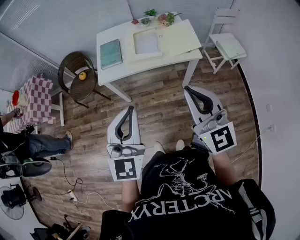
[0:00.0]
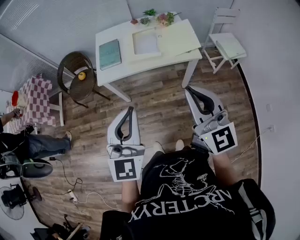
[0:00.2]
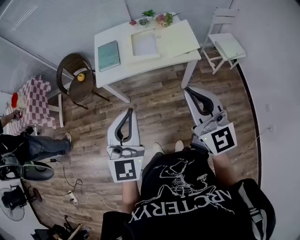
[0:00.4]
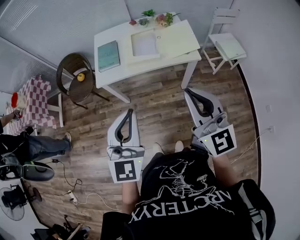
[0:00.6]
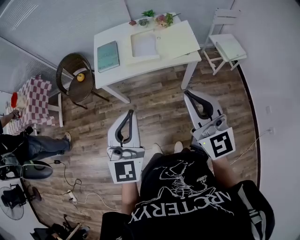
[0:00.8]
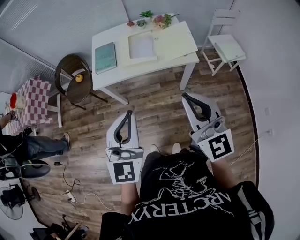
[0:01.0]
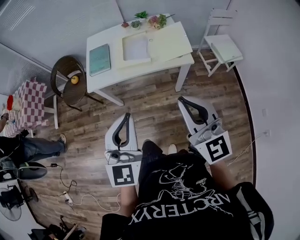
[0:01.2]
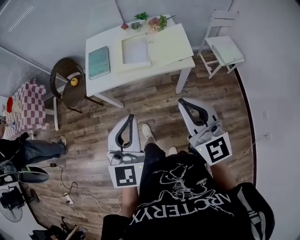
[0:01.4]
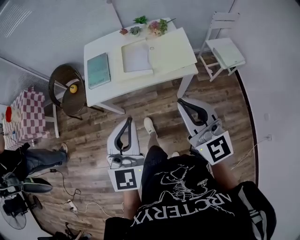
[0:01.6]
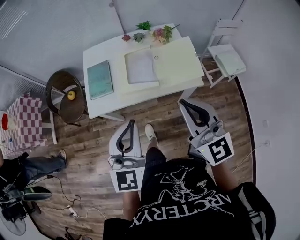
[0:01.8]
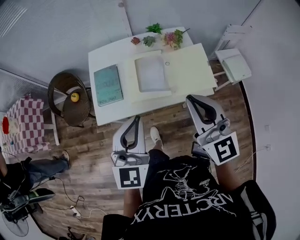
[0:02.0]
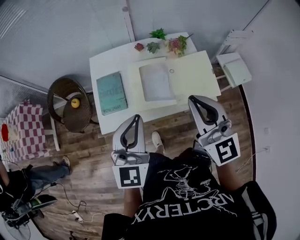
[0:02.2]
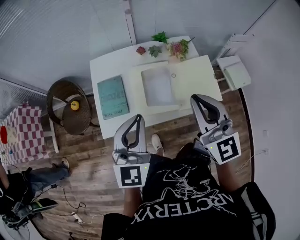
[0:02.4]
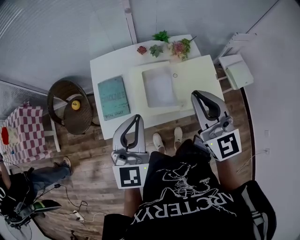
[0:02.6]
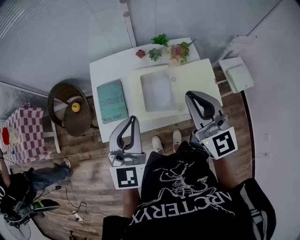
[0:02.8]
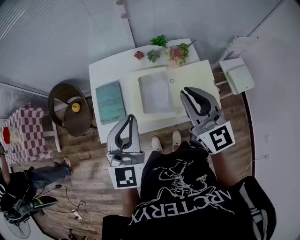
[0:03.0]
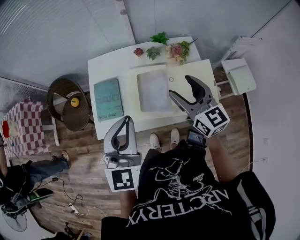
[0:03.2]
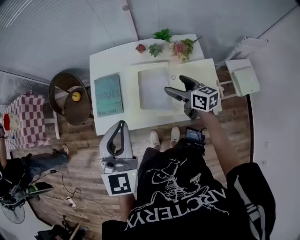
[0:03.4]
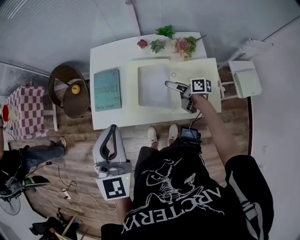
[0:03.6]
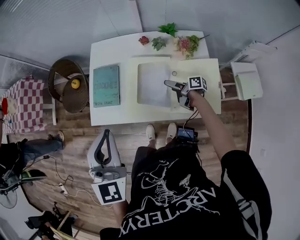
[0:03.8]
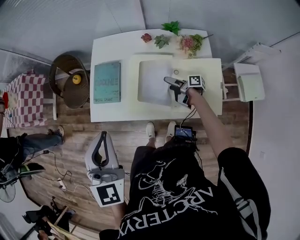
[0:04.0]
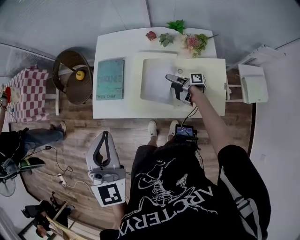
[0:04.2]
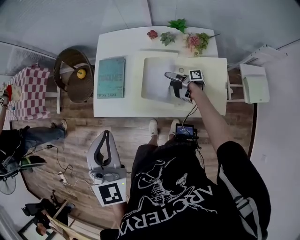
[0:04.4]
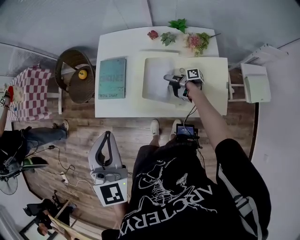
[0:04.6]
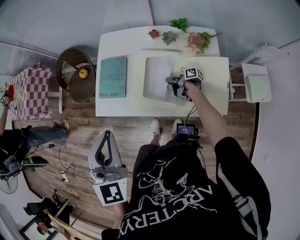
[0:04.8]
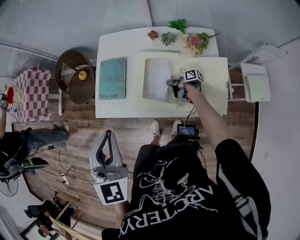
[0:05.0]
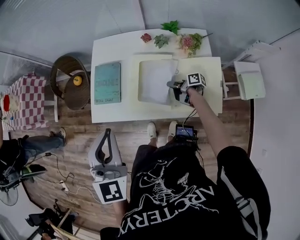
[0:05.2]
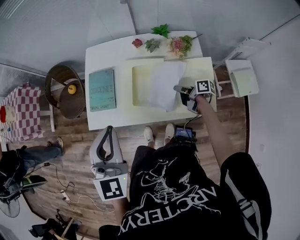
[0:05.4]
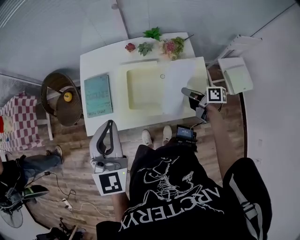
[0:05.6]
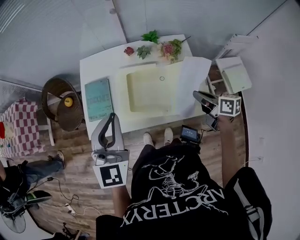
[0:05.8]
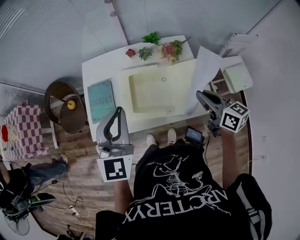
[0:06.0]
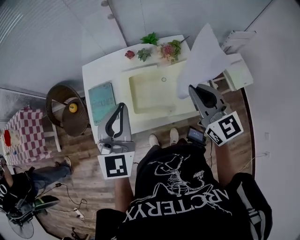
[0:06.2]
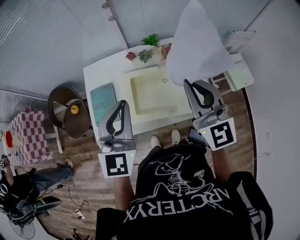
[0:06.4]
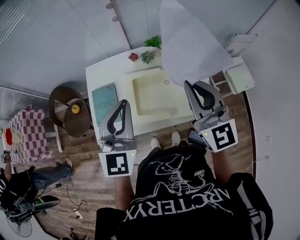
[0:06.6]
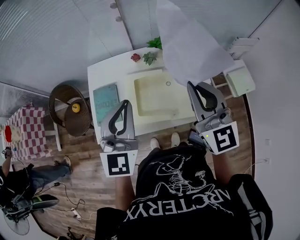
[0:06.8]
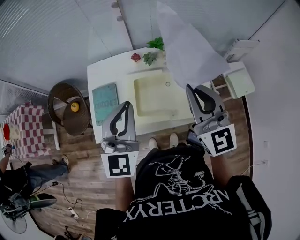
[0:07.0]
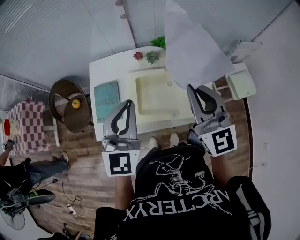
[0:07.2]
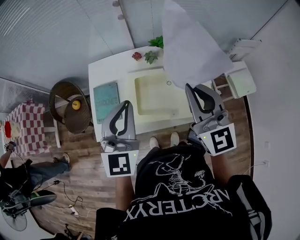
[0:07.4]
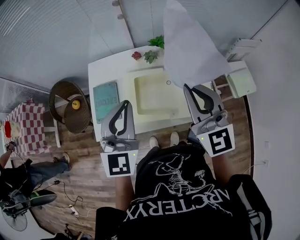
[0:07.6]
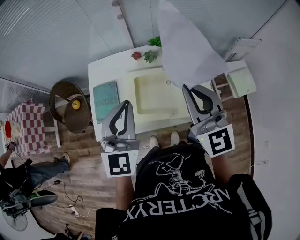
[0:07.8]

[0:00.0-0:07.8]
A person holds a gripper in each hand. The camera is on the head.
0.0 to 1.6 s: The two grippers go approximately 15 cm forward and to the right.
1.6 to 3.2 s: The grippers both shift forward by some 35 cm. The right gripper opens.
3.2 to 4.6 s: The left gripper ends up roughly 5 cm from where it was, and turns by roughly 20 degrees. The right gripper travels downward by about 35 cm, twists about 80 degrees clockwise, seen from behind, and opens, then closes again.
4.6 to 6.2 s: The left gripper ends up approximately 10 cm from where it was, and rotates about 20 degrees. The right gripper travels upward by roughly 40 cm, rolls counterclockwise, seen from behind, by roughly 90 degrees, and closes.
6.2 to 7.8 s: The right gripper moves upward, about 5 cm.

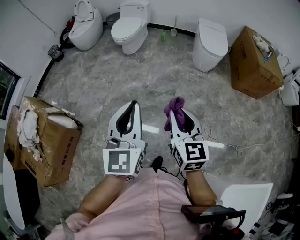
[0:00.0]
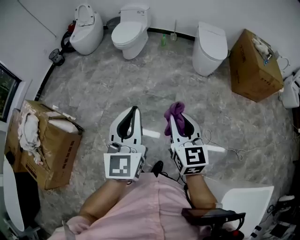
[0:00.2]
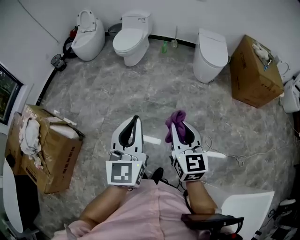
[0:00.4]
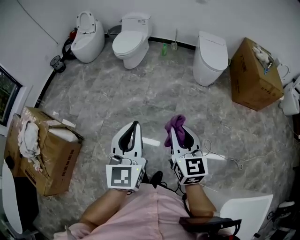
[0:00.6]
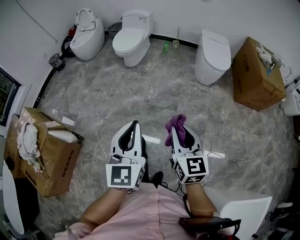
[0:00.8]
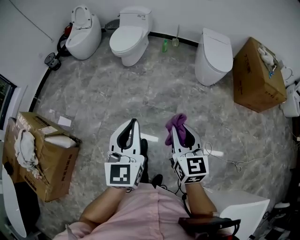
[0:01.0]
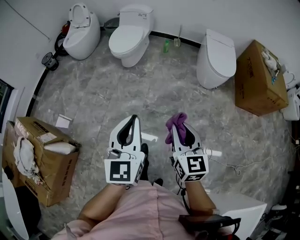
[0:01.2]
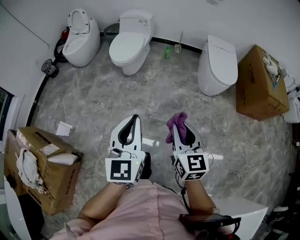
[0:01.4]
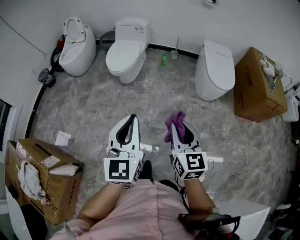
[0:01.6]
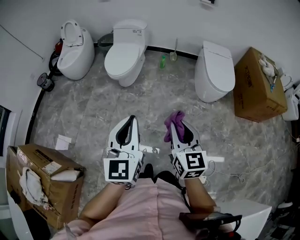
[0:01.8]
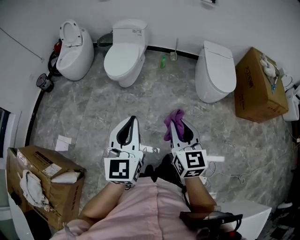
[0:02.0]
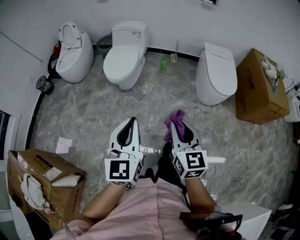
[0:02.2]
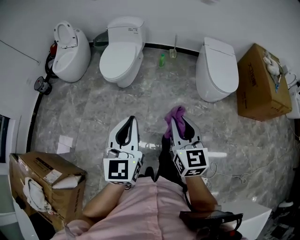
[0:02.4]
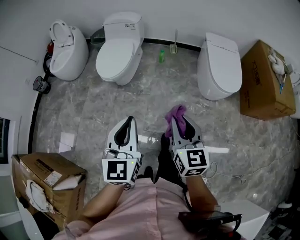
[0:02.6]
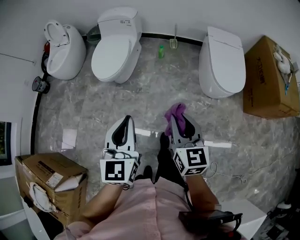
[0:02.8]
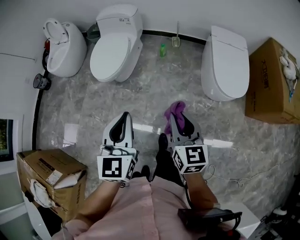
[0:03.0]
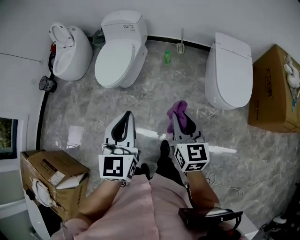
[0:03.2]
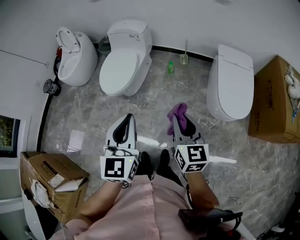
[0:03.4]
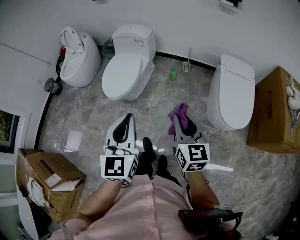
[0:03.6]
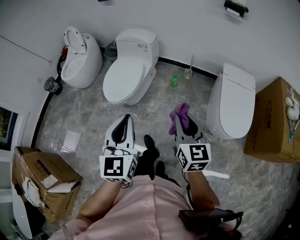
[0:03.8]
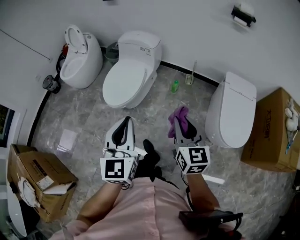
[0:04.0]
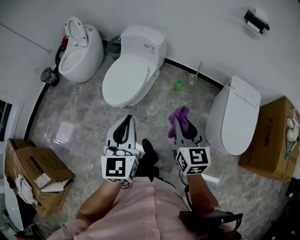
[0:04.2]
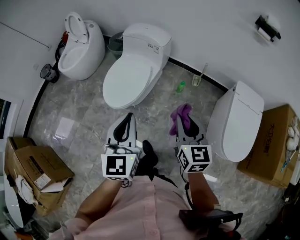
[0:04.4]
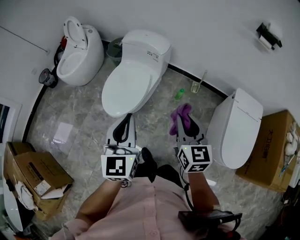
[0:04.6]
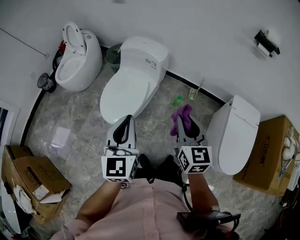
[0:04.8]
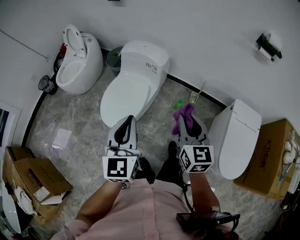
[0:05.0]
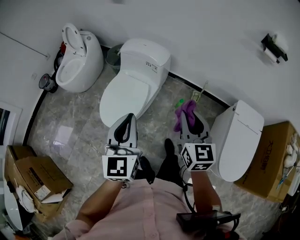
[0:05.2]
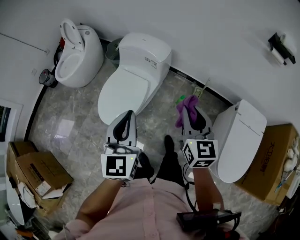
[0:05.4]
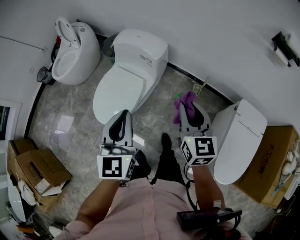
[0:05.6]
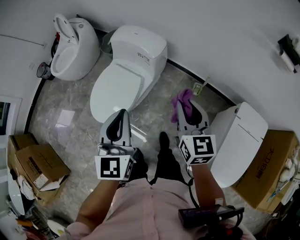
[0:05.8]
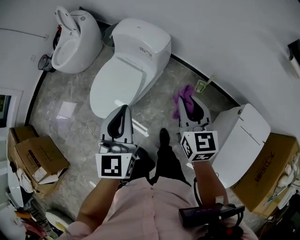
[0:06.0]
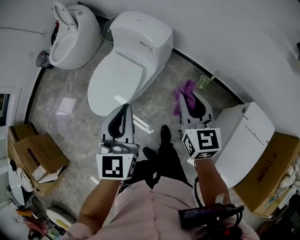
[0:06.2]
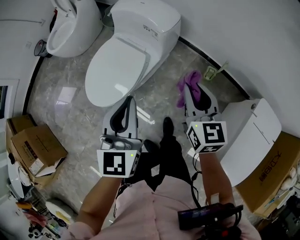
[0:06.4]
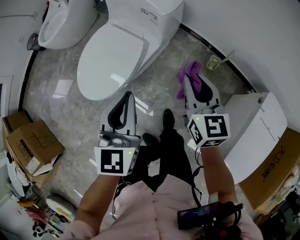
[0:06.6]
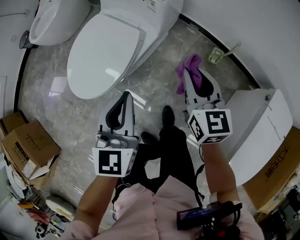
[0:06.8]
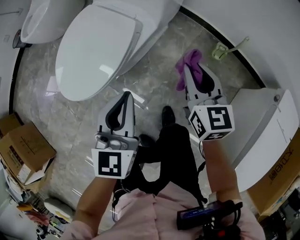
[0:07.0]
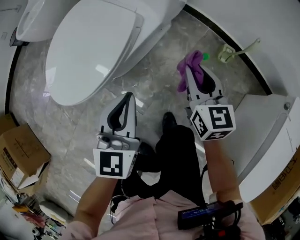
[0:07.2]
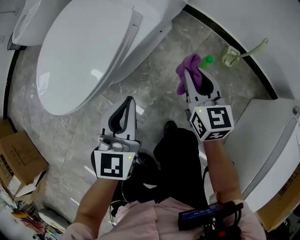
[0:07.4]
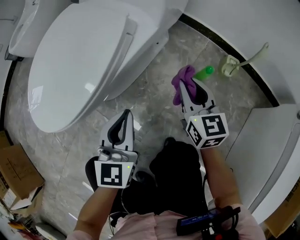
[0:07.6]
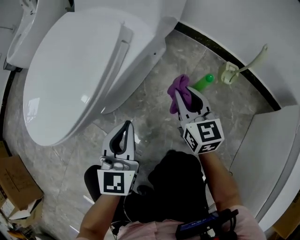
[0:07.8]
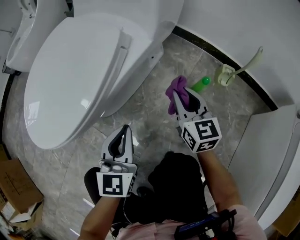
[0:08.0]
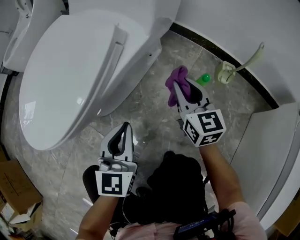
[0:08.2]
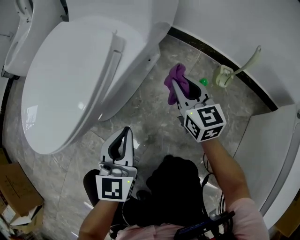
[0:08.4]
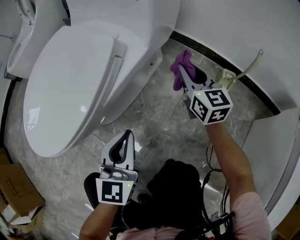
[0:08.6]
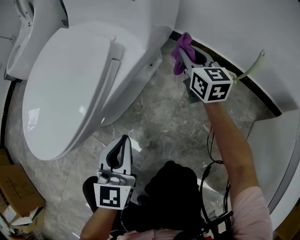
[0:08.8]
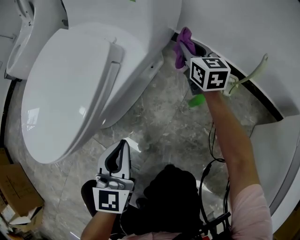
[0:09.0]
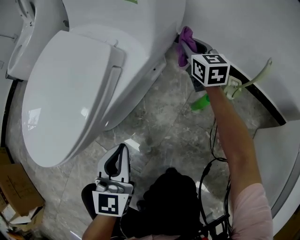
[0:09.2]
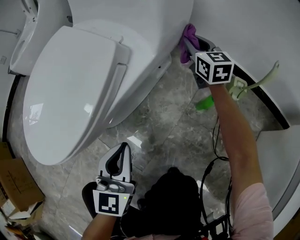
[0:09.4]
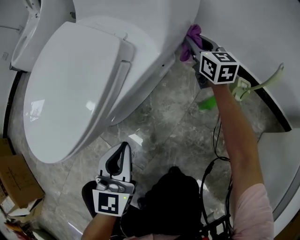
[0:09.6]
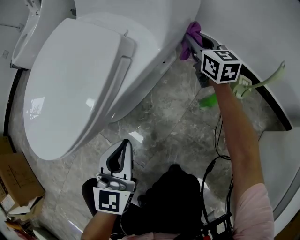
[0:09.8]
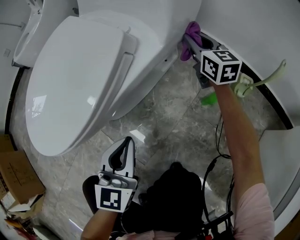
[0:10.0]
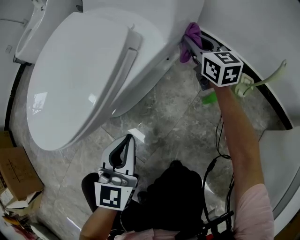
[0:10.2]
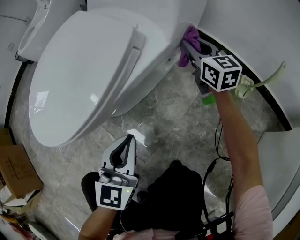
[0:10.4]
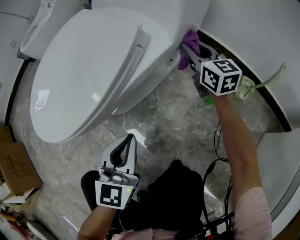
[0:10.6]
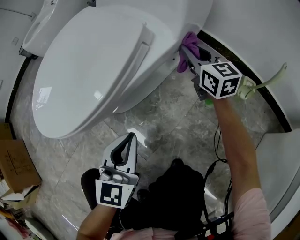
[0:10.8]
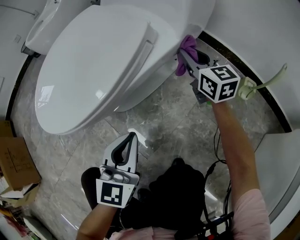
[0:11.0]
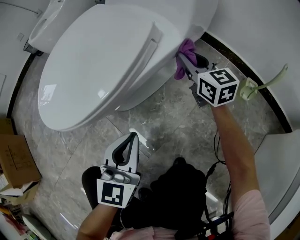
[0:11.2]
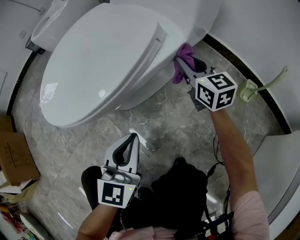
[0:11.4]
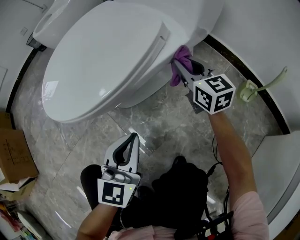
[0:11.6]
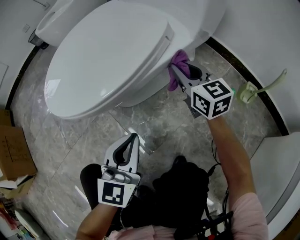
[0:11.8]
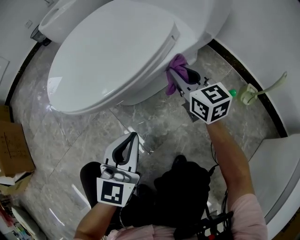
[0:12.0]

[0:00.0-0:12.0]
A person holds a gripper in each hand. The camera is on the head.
0.0 to 1.6 s: The grippers both shift forward by roughly 35 cm.
1.6 to 3.0 s: The grippers both shift forward and to the right by approximately 30 cm.
3.0 to 4.4 s: The grippers both shift forward by roughly 30 cm.
4.4 to 6.0 s: Both grippers move forward and to the right, some 30 cm.
6.0 to 7.6 s: Both grippers move downward, about 50 cm.
7.6 to 9.0 s: The right gripper moves forward, some 25 cm.
9.0 to 10.4 s: The right gripper heads to the left, covering roughly 5 cm.
10.4 to 12.0 s: The right gripper heads to the left and backward, covering about 20 cm; the left gripper moves to the left and backward, approximately 10 cm.

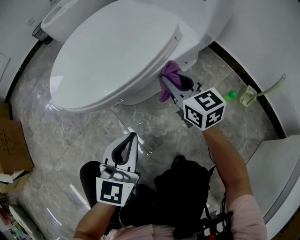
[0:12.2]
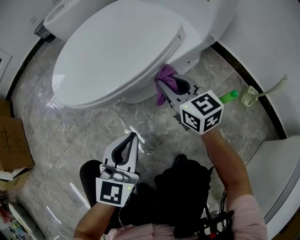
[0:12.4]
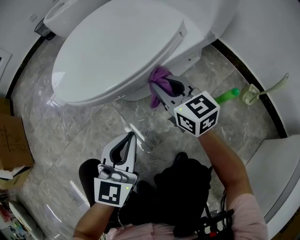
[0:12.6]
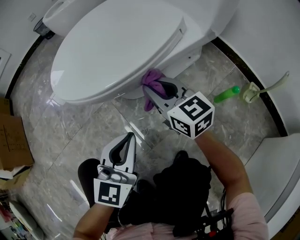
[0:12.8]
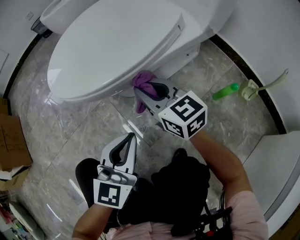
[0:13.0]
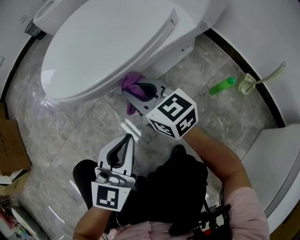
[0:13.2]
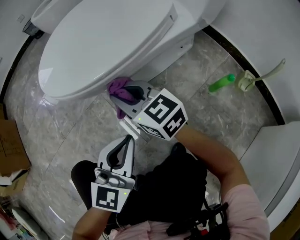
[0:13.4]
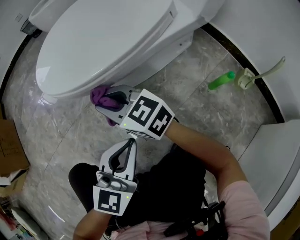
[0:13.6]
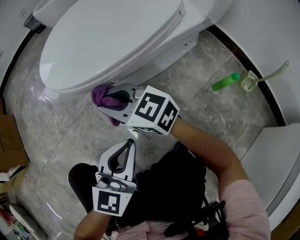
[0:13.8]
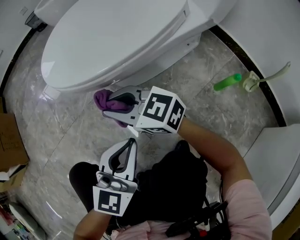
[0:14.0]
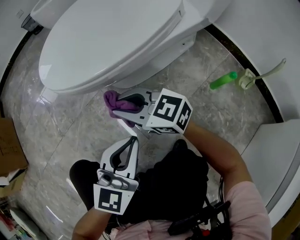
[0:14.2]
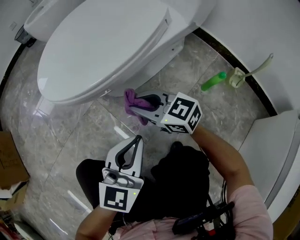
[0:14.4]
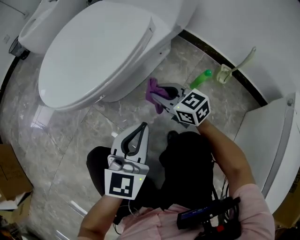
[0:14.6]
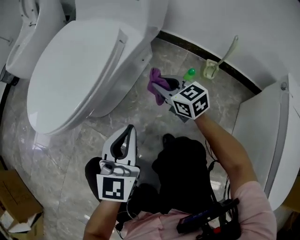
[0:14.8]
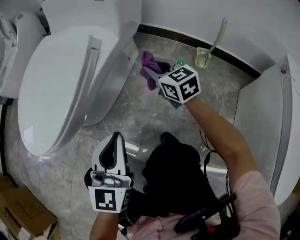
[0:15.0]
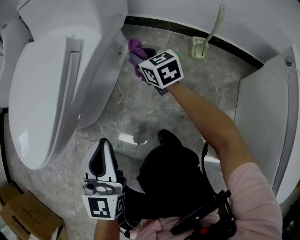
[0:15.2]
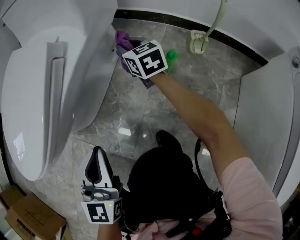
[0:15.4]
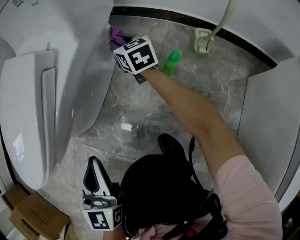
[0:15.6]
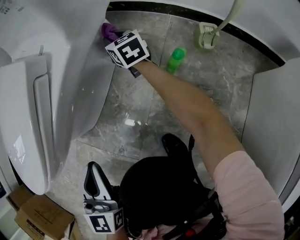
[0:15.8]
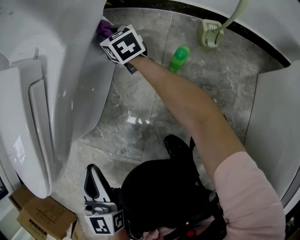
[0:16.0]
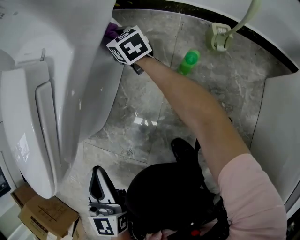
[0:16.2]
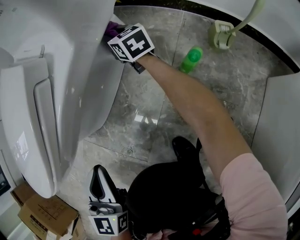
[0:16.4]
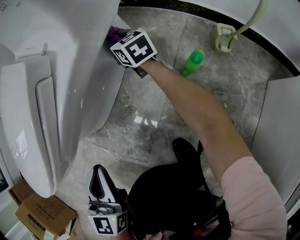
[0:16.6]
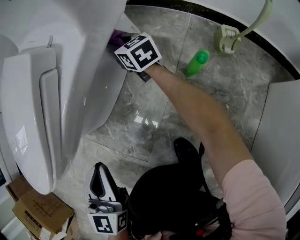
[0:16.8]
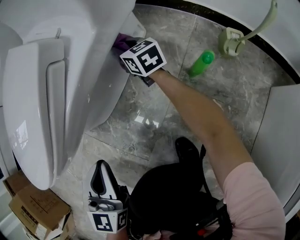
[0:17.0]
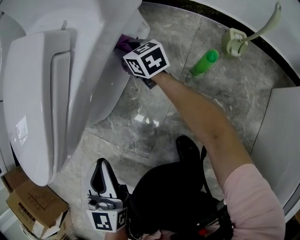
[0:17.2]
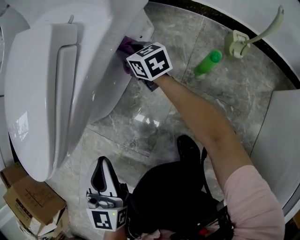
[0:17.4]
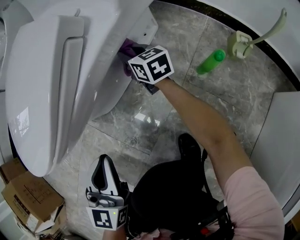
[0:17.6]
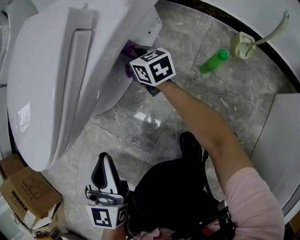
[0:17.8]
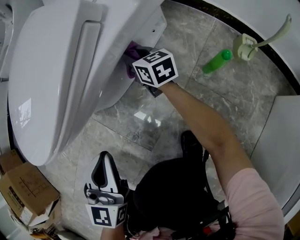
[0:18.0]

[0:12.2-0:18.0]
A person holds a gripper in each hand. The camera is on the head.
12.2 to 13.6 s: The left gripper travels backward by about 5 cm. Meanwhile the right gripper heads to the left, covering about 20 cm, and rotates approximately 30 degrees.
13.6 to 15.0 s: The right gripper moves about 40 cm, and rotates some 50 degrees; the left gripper changes place by roughly 10 cm.
15.0 to 16.6 s: The right gripper is displaced forward and downward by some 25 cm, while the left gripper goes some 10 cm downward and forward.
16.6 to 18.0 s: The right gripper is displaced to the left and backward by about 15 cm. The left gripper goes approximately 5 cm to the left.
